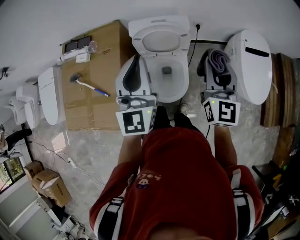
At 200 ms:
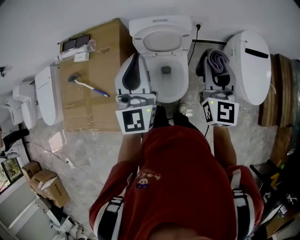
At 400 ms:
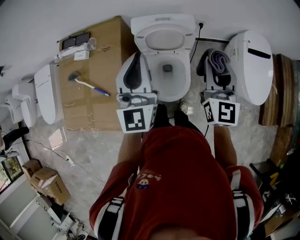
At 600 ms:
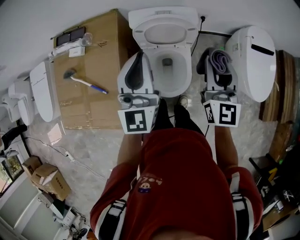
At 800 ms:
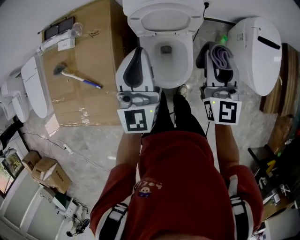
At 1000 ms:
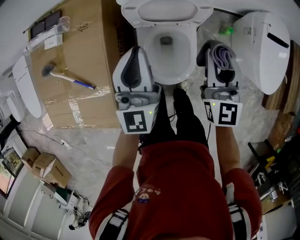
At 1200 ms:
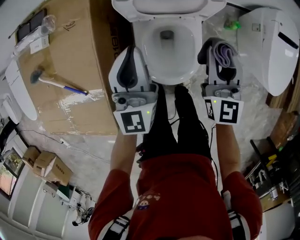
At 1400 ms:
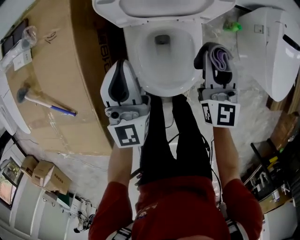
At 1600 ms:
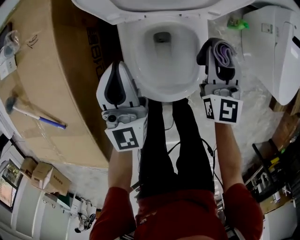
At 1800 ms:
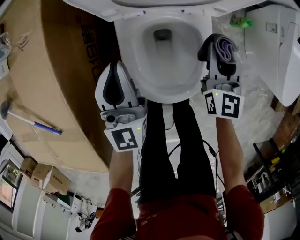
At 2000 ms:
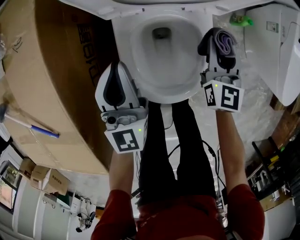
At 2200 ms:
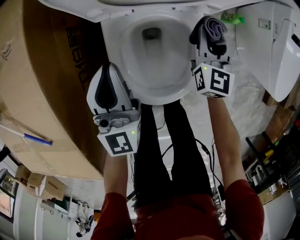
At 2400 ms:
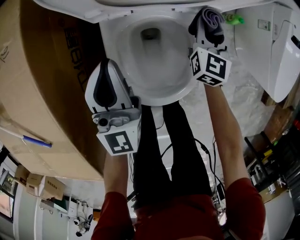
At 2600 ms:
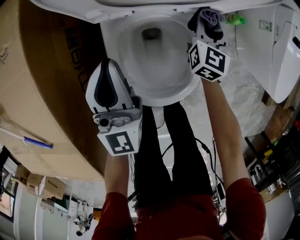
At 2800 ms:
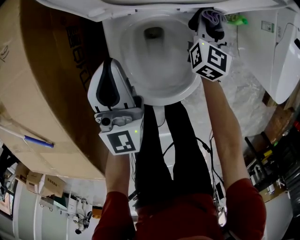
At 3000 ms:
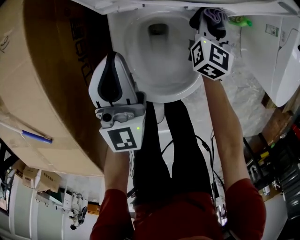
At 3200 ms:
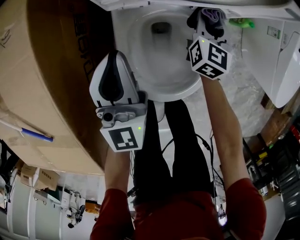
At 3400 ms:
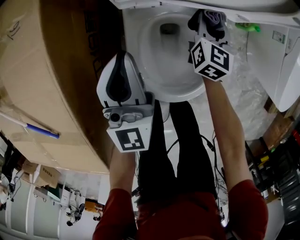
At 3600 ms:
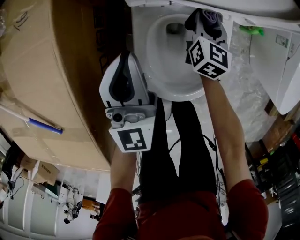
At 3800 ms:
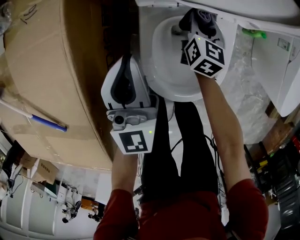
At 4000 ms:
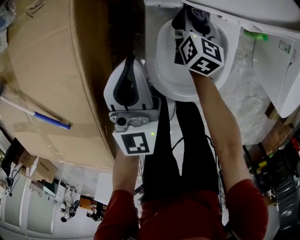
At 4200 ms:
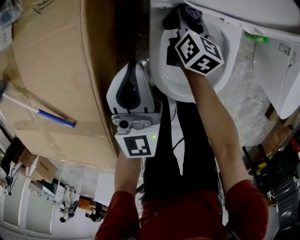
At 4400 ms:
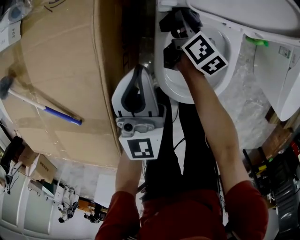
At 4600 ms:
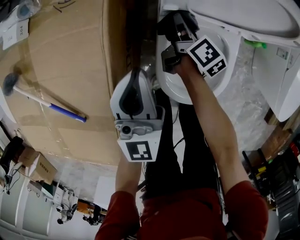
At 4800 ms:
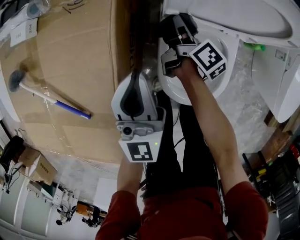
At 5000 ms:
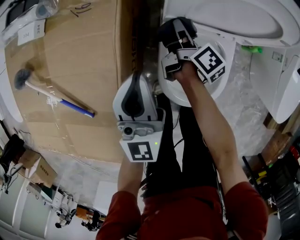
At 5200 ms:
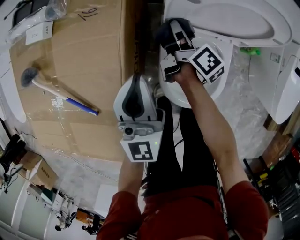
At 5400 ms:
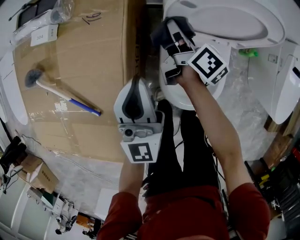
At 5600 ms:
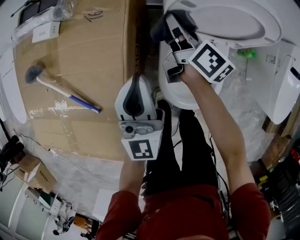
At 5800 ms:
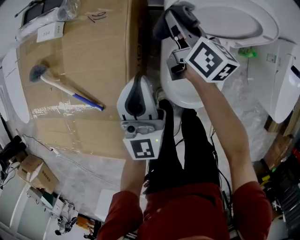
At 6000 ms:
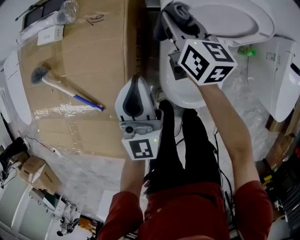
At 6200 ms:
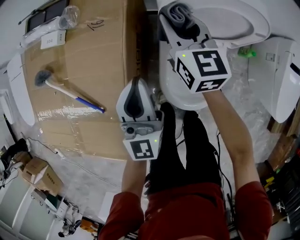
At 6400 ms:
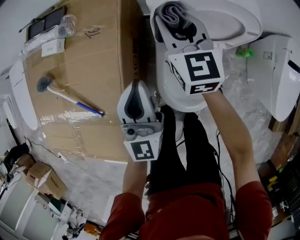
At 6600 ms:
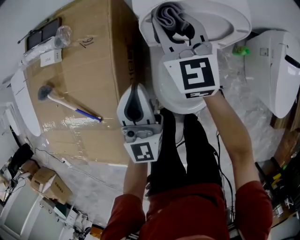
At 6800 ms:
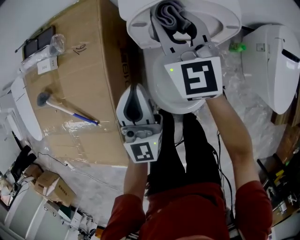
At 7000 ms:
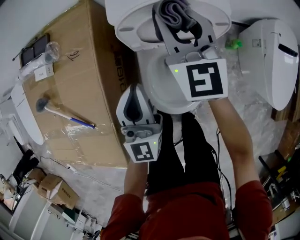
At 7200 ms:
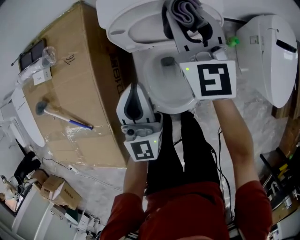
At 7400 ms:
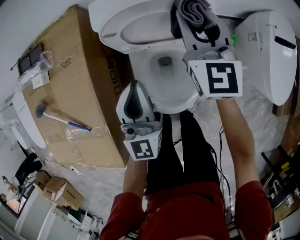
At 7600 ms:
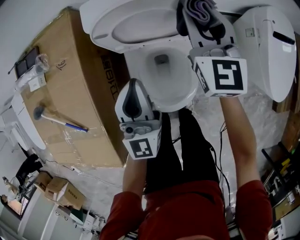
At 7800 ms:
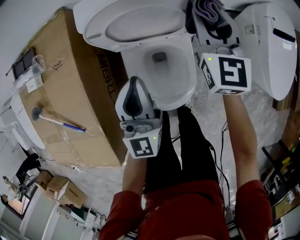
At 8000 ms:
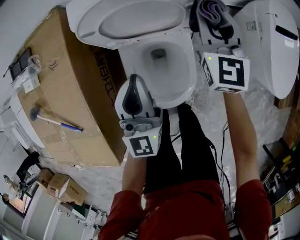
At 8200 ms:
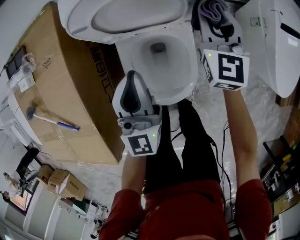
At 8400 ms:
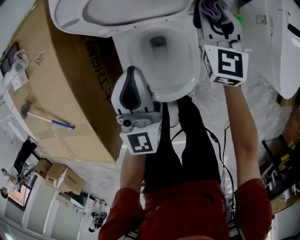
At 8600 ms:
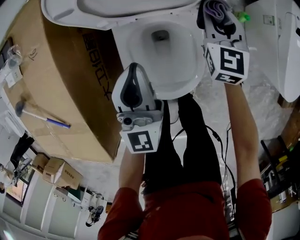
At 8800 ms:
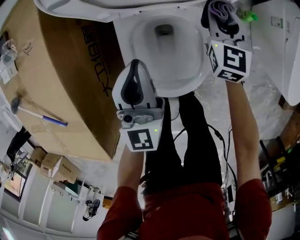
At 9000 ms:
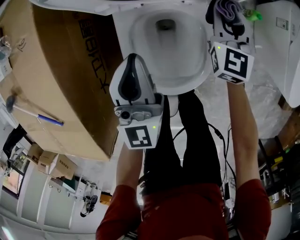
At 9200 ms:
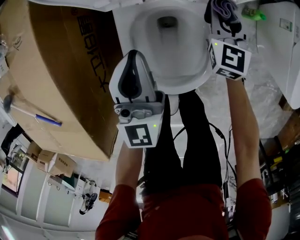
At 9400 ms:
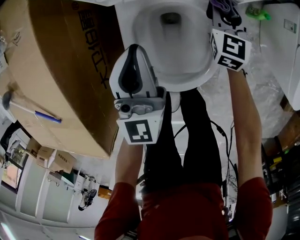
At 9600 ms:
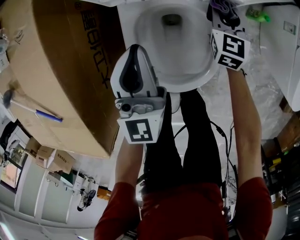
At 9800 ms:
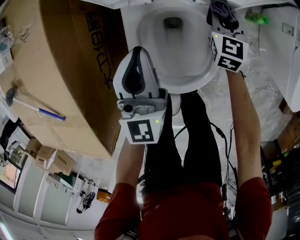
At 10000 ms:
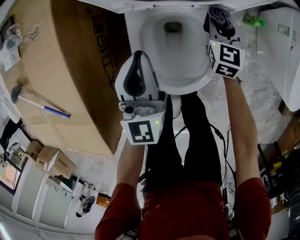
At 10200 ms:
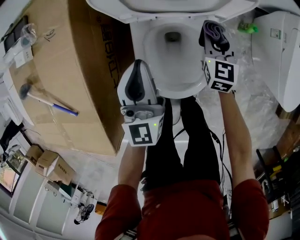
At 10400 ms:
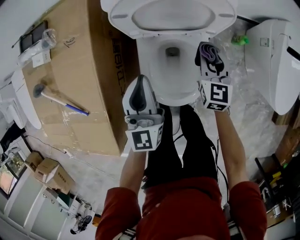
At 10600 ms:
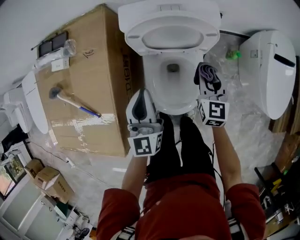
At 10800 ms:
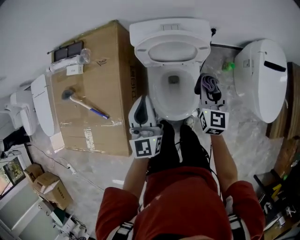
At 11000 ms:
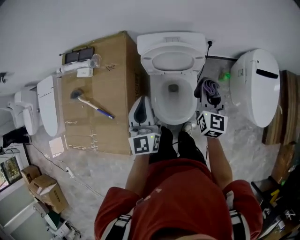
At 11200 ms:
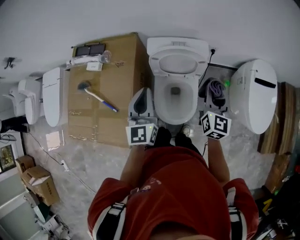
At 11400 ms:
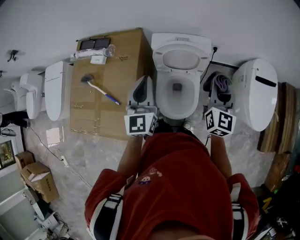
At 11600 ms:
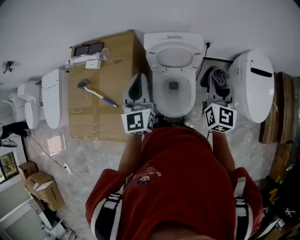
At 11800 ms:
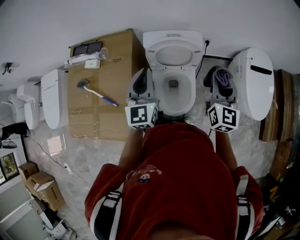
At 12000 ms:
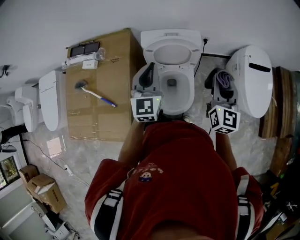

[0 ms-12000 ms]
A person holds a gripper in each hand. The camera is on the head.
0 ms to 1600 ms: The two grippers go approximately 40 cm downward.
1600 ms to 3000 ms: The left gripper goes some 5 cm downward; the right gripper travels downward and forward by approximately 15 cm.
3000 ms to 4400 ms: The left gripper heads to the left, covering roughly 10 cm; the right gripper is displaced to the left by roughly 20 cm, and twists roughly 40 degrees clockwise, seen from behind.
4400 ms to 6000 ms: The right gripper shifts about 25 cm upward, and turns by roughly 30 degrees. Meanwhile the left gripper is displaced upward by approximately 10 cm.
6000 ms to 7600 ms: The grippers both shift to the right by about 20 cm. The right gripper rotates about 40 degrees.
7600 ms to 9000 ms: The left gripper travels downward by some 15 cm. The right gripper goes about 25 cm downward.
9000 ms to 10400 ms: The left gripper heads upward, covering approximately 10 cm; the right gripper is displaced upward and backward by approximately 10 cm.
10400 ms to 12000 ms: The two grippers go about 35 cm upward. The right gripper changes its angle by roughly 20 degrees.

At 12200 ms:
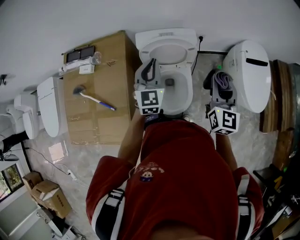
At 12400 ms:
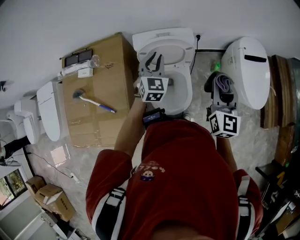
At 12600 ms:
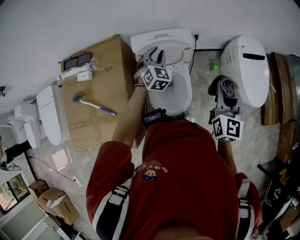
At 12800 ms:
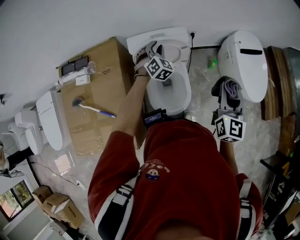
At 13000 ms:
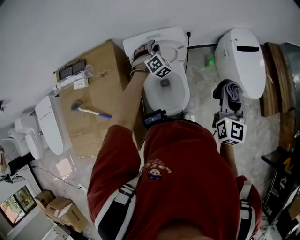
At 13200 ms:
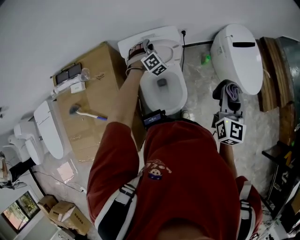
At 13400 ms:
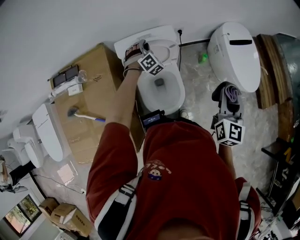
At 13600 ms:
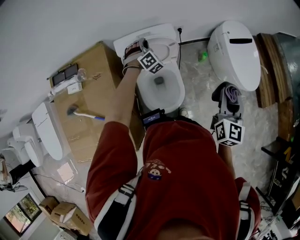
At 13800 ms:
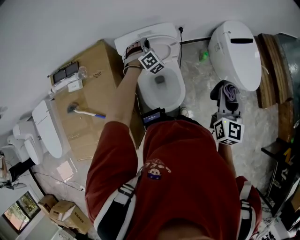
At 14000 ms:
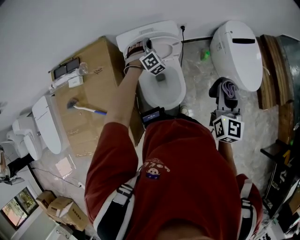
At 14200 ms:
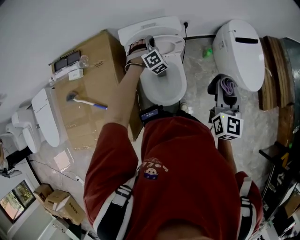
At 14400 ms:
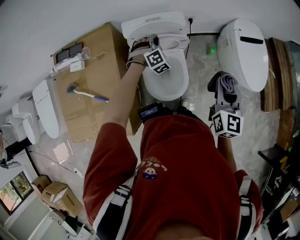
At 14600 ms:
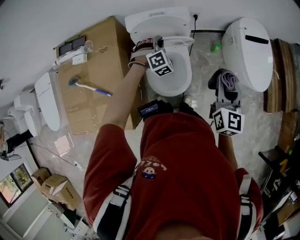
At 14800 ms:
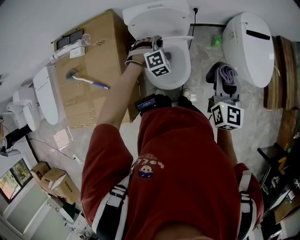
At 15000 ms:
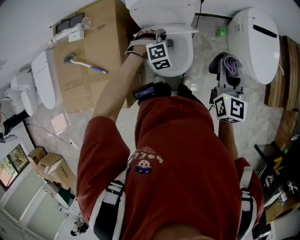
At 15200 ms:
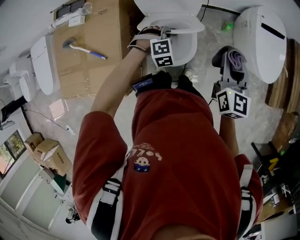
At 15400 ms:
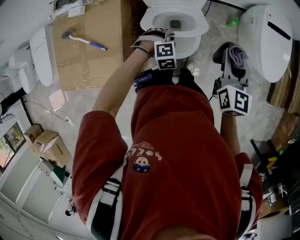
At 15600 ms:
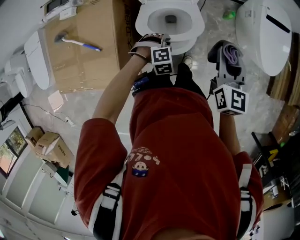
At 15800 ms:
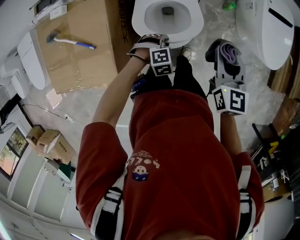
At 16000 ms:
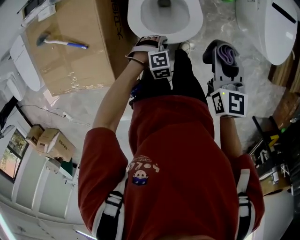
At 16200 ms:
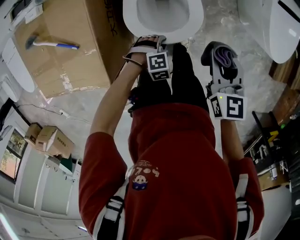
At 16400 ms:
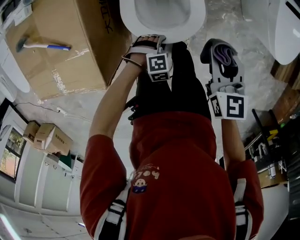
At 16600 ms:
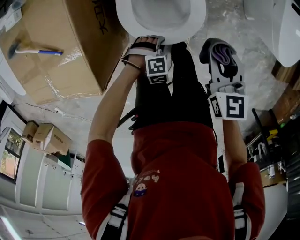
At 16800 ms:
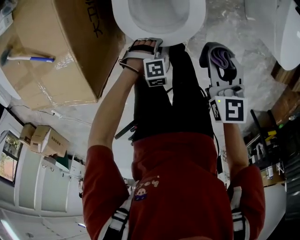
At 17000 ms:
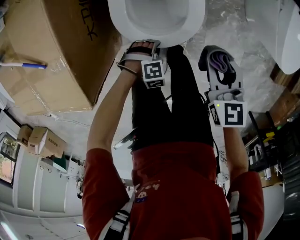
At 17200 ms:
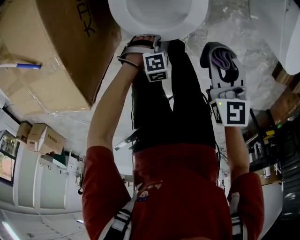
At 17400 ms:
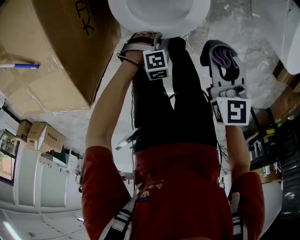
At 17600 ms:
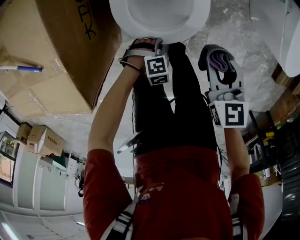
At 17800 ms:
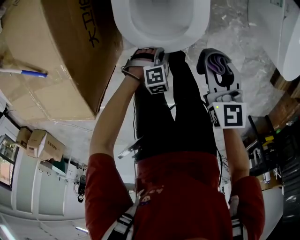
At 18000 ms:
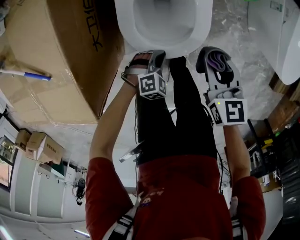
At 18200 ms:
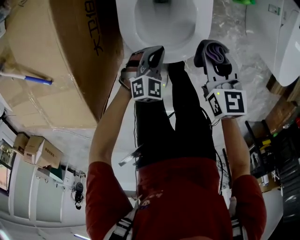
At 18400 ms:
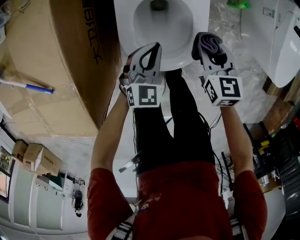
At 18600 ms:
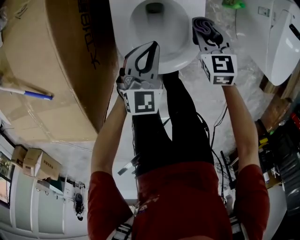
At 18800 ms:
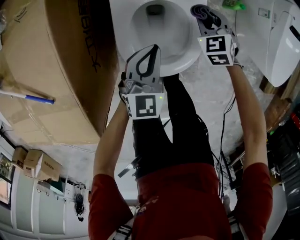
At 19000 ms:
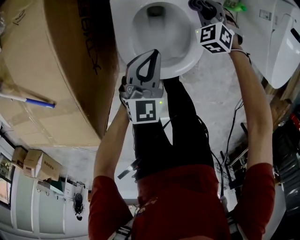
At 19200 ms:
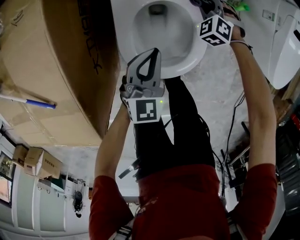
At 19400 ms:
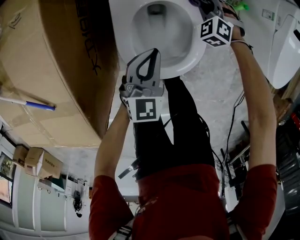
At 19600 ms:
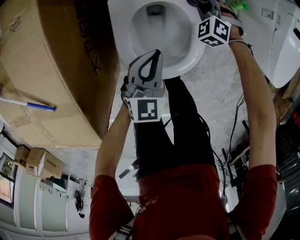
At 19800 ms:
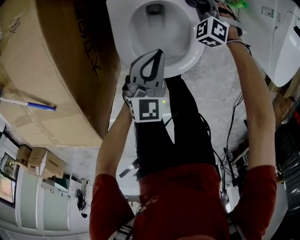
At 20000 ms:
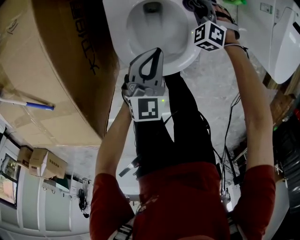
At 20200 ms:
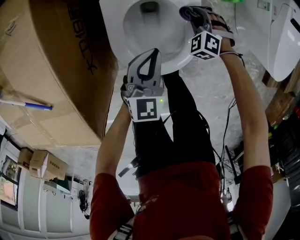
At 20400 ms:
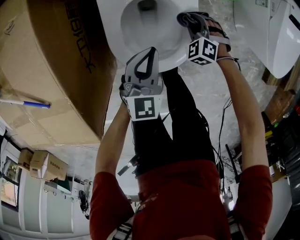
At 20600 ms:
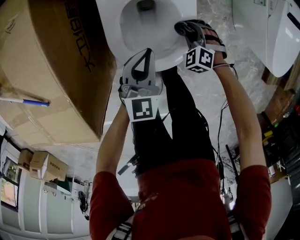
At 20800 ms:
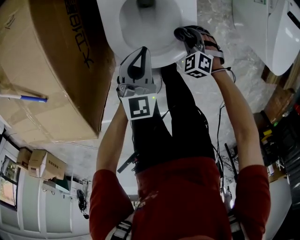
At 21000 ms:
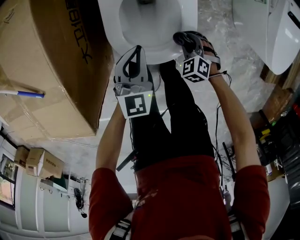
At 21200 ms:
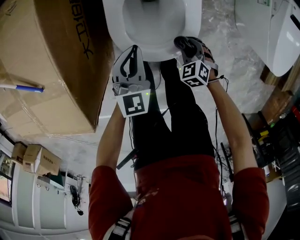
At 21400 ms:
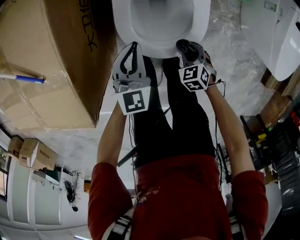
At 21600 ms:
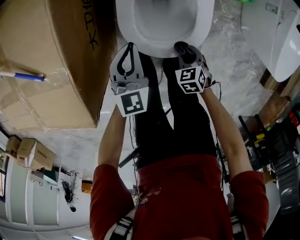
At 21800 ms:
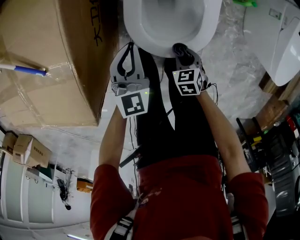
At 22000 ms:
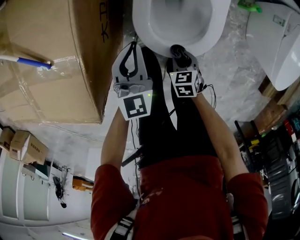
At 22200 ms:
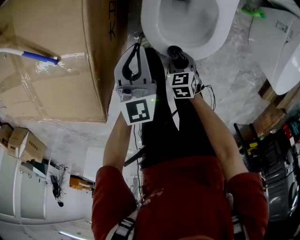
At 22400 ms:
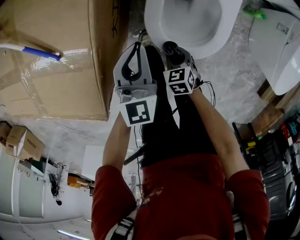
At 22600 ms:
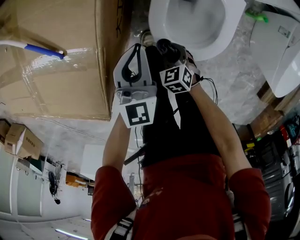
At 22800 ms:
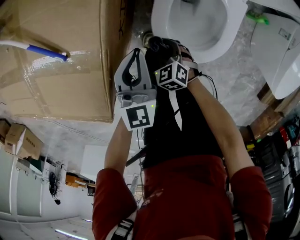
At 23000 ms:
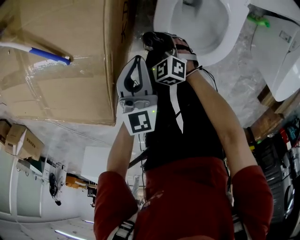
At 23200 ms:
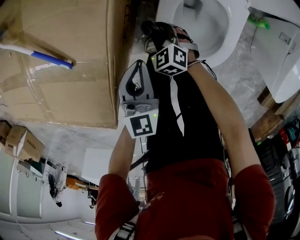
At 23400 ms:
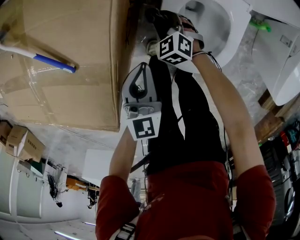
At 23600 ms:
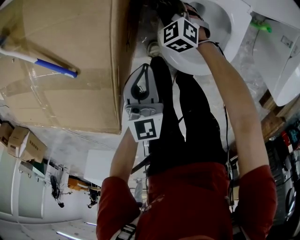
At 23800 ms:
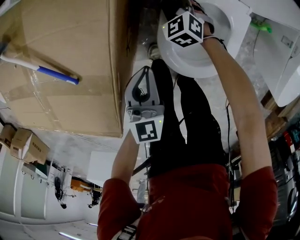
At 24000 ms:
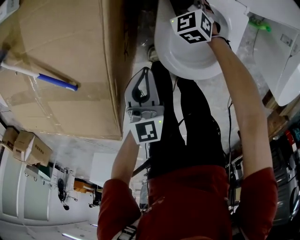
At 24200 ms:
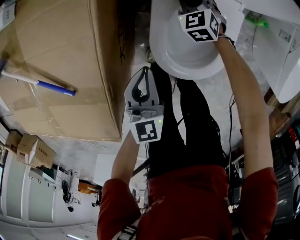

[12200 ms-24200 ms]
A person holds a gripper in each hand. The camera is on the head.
12200 ms to 13800 ms: The left gripper shifts about 20 cm forward and downward, and rolls clockwise, seen from behind, by roughly 50 degrees, while the right gripper is displaced to the right and backward by approximately 10 cm.
13800 ms to 15200 ms: The left gripper is displaced backward by some 25 cm, and rotates approximately 30 degrees.
15200 ms to 16600 ms: The grippers both shift downward by some 25 cm. The left gripper rotates roughly 20 degrees. The right gripper changes its angle by about 30 degrees.
16600 ms to 18200 ms: The right gripper is displaced downward by roughly 10 cm; the left gripper goes downward and returns, about 10 cm each way, rotates some 50 degrees, and closes up.
18200 ms to 19800 ms: The left gripper travels forward and upward by some 10 cm, and turns by approximately 30 degrees, while the right gripper travels forward and downward by roughly 25 cm, and rolls counterclockwise, seen from behind, by approximately 70 degrees.
19800 ms to 21200 ms: The left gripper is displaced backward by roughly 5 cm; the right gripper moves backward, approximately 25 cm, and rotates approximately 30 degrees.
21200 ms to 22600 ms: The right gripper goes about 20 cm to the left; the left gripper moves to the left, approximately 15 cm, and rotates roughly 20 degrees.
22600 ms to 24200 ms: The right gripper travels forward and to the right by approximately 35 cm, and changes its angle by about 20 degrees.
